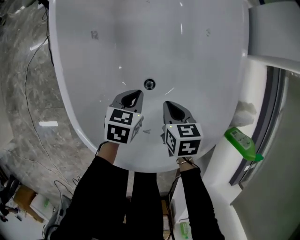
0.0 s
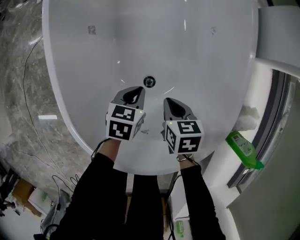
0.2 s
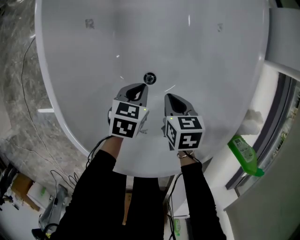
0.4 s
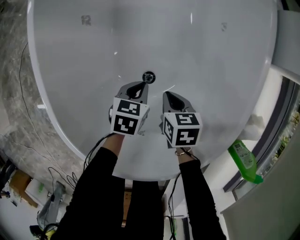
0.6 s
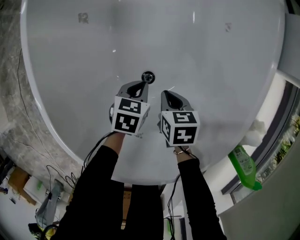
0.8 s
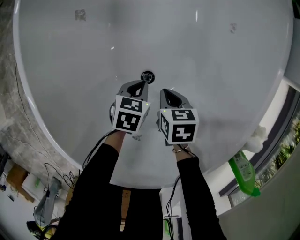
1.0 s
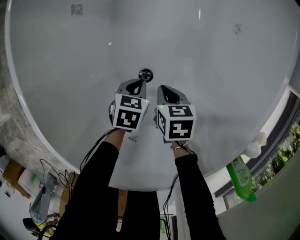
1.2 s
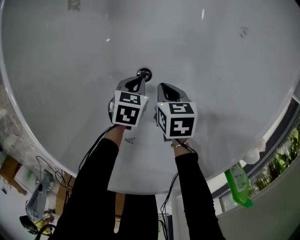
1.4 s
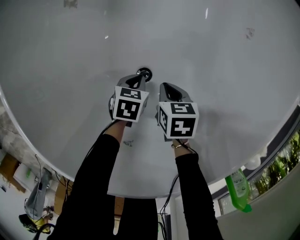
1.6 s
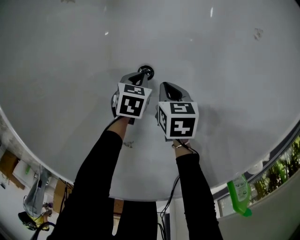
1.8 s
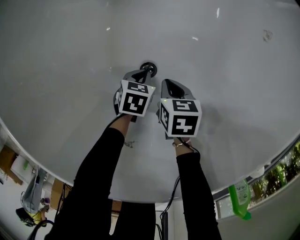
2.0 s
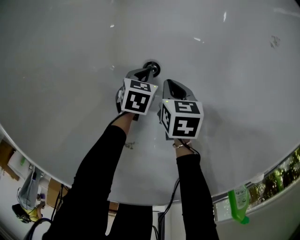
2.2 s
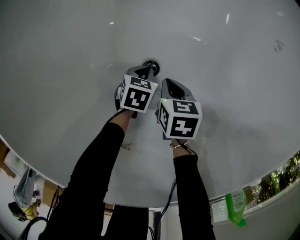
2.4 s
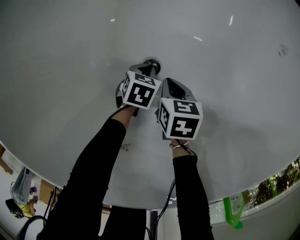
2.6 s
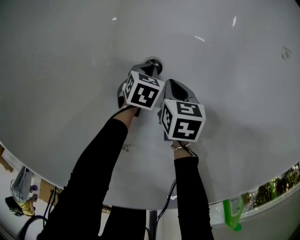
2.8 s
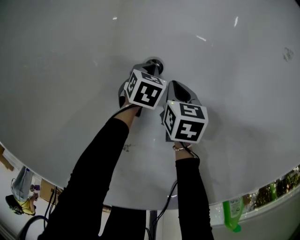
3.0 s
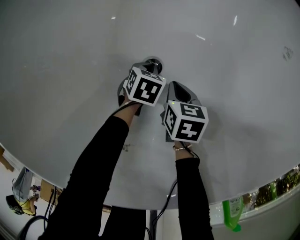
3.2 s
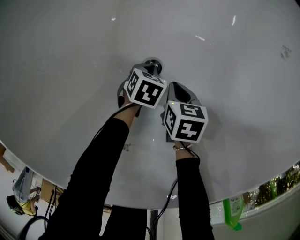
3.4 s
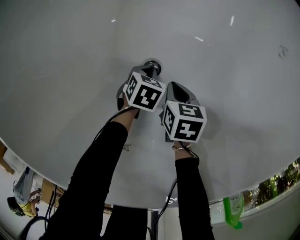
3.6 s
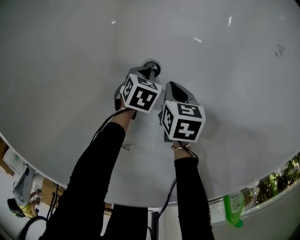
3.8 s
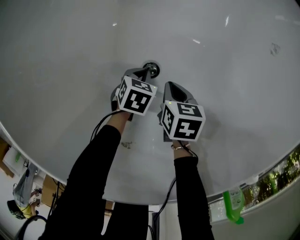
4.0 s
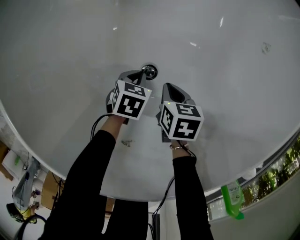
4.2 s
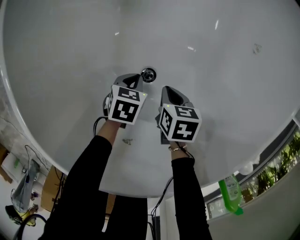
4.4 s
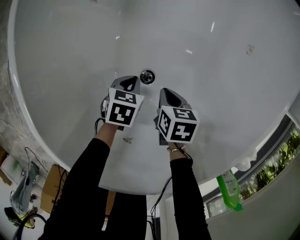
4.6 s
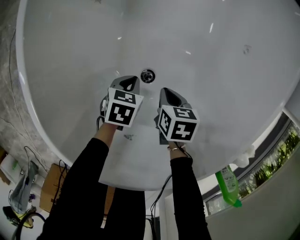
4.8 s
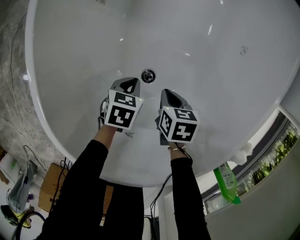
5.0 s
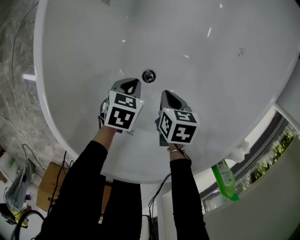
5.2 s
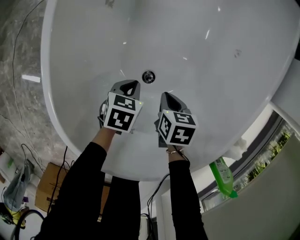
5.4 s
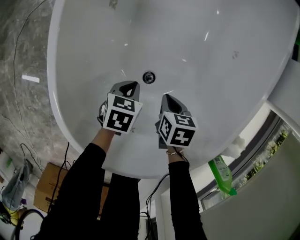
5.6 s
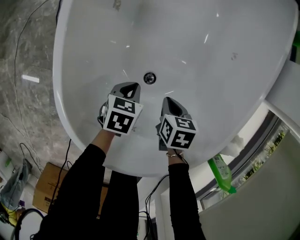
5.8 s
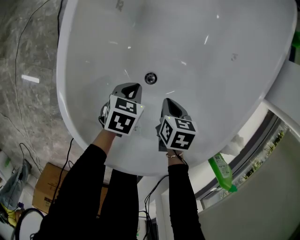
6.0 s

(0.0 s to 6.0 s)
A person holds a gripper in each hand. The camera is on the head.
0.0 s - 1.6 s: Both grippers travel together downward, approximately 20 cm.
1.6 s - 3.0 s: The grippers both shift downward by roughly 10 cm.
3.0 s - 4.4 s: The right gripper shifts about 5 cm upward, while the left gripper goes roughly 10 cm upward.
4.4 s - 6.0 s: Both grippers move upward, about 15 cm.

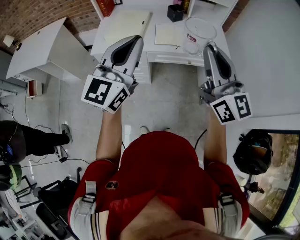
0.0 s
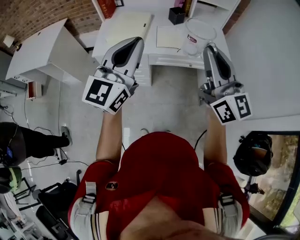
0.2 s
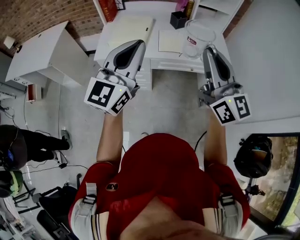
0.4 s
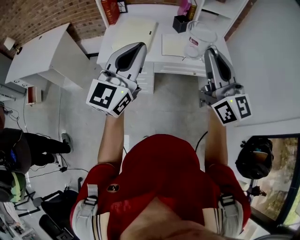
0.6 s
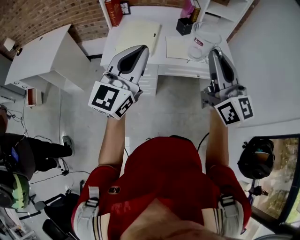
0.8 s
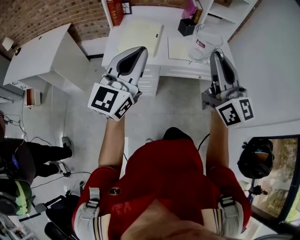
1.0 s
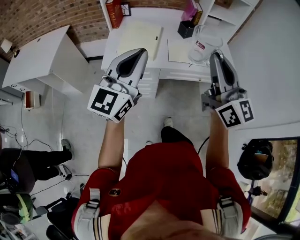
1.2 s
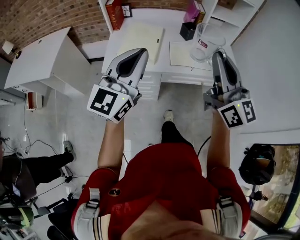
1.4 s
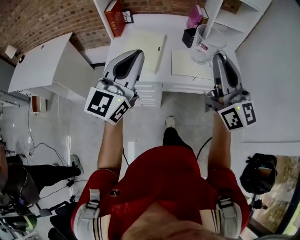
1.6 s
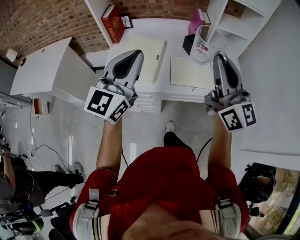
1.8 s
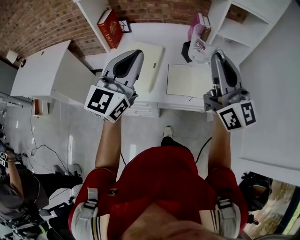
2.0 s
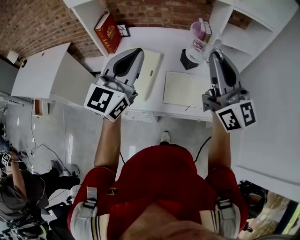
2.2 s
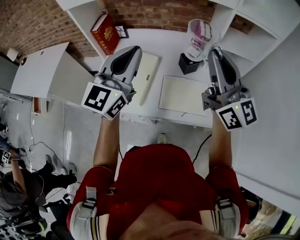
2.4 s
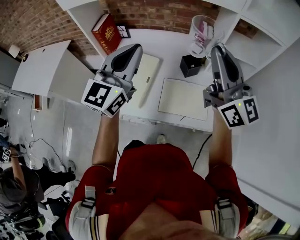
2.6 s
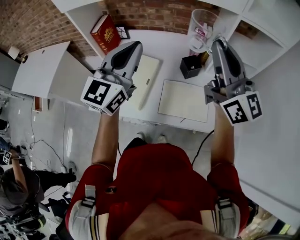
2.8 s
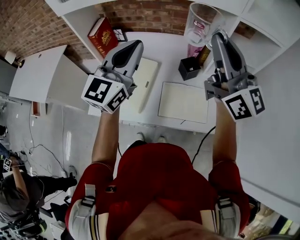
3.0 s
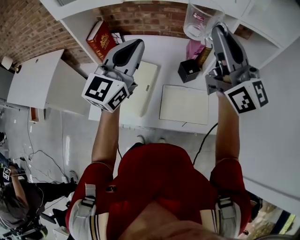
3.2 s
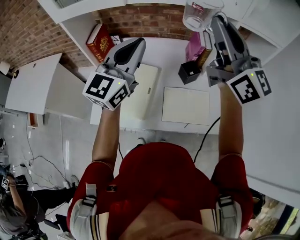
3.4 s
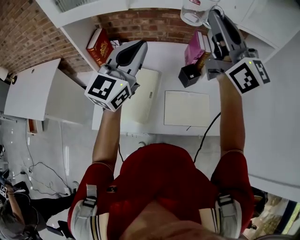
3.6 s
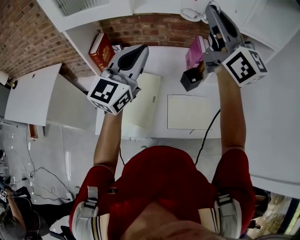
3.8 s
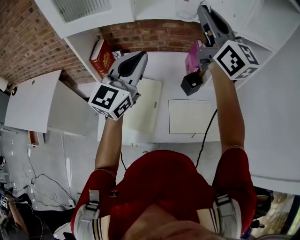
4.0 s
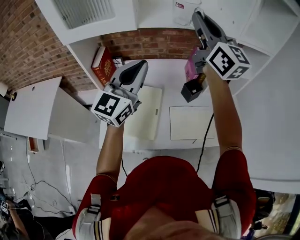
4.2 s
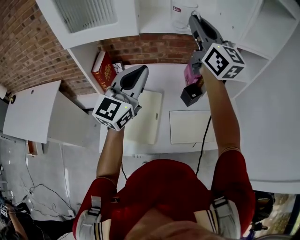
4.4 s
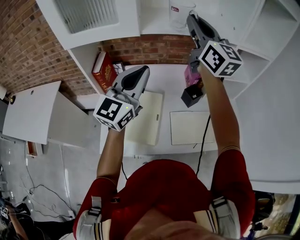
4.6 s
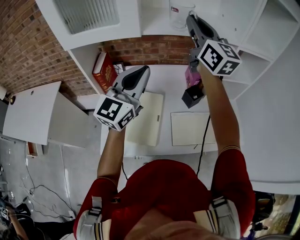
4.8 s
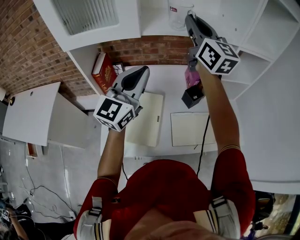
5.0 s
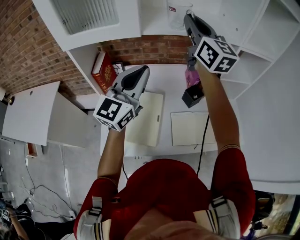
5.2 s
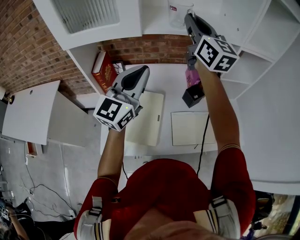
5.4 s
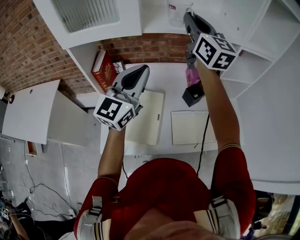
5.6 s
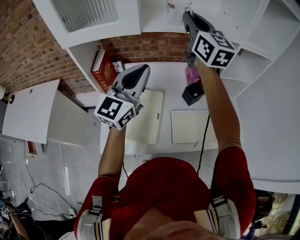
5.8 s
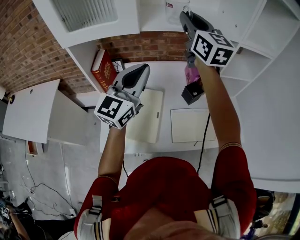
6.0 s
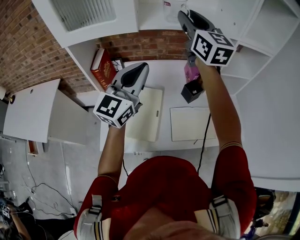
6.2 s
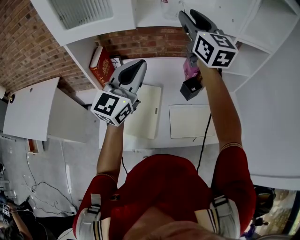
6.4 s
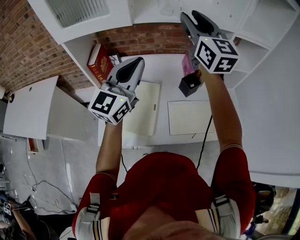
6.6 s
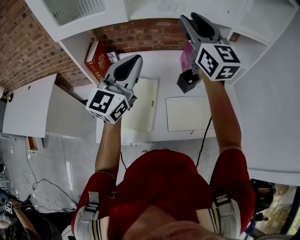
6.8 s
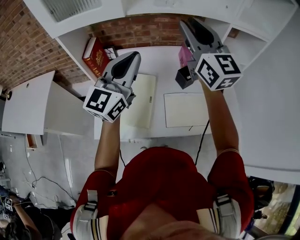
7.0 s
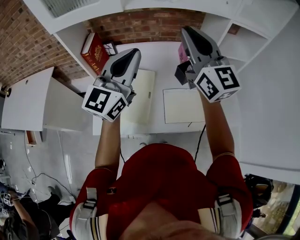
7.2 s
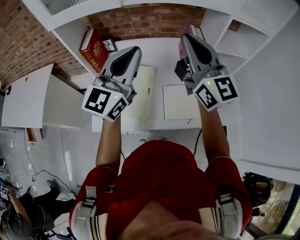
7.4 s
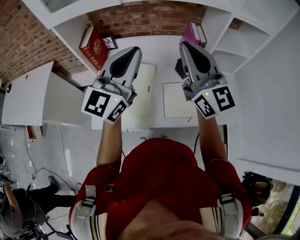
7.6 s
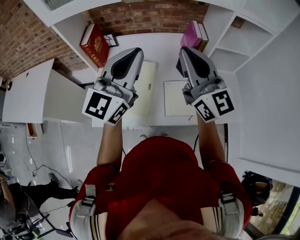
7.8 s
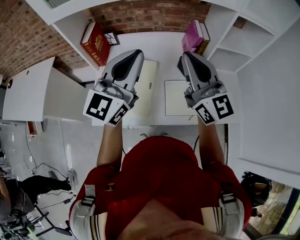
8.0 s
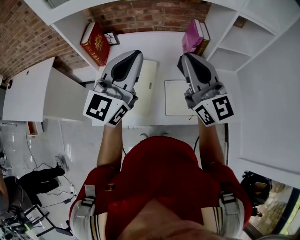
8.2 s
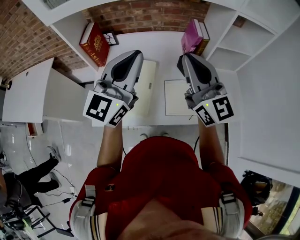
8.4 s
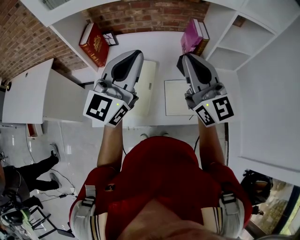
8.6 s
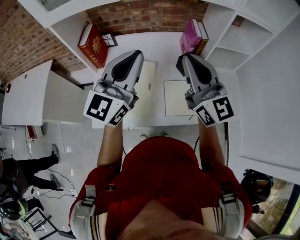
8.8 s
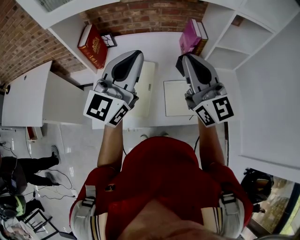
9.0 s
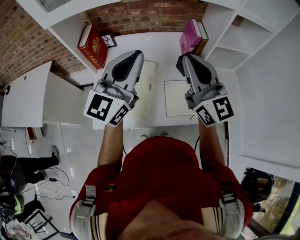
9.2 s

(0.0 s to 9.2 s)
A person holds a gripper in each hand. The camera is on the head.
0.0 s - 1.6 s: The grippers both shift forward and to the left by about 15 cm.
1.6 s - 3.0 s: The two grippers go some 30 cm forward.
3.0 s - 4.6 s: The left gripper heads to the left, covering some 10 cm; the right gripper shifts about 20 cm forward, to the left and upward.
4.6 s - 6.2 s: The right gripper opens up.
6.2 s - 7.6 s: The right gripper shifts approximately 20 cm backward and downward, and closes its fingers. Meanwhile the left gripper shifts about 5 cm backward.
7.6 s - 9.2 s: There are only small adjustments of the grippers.

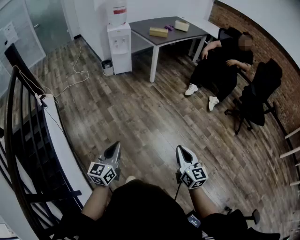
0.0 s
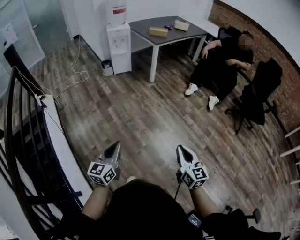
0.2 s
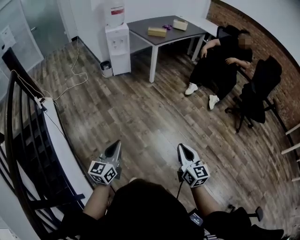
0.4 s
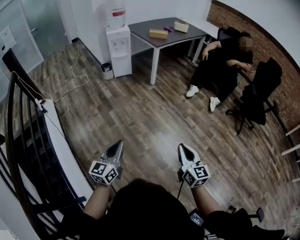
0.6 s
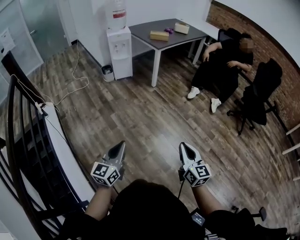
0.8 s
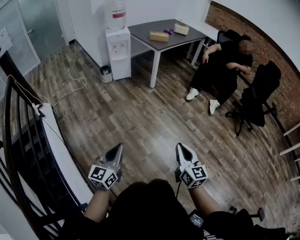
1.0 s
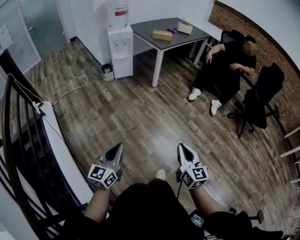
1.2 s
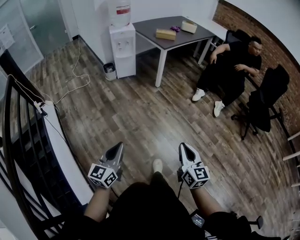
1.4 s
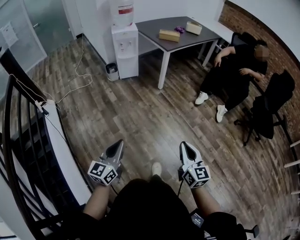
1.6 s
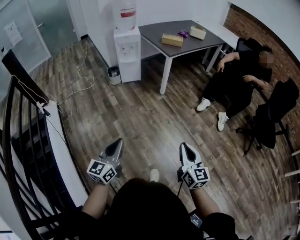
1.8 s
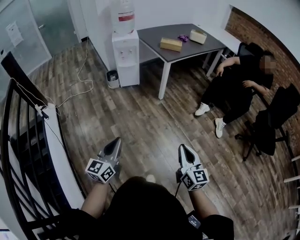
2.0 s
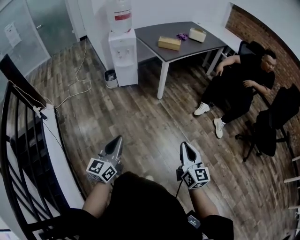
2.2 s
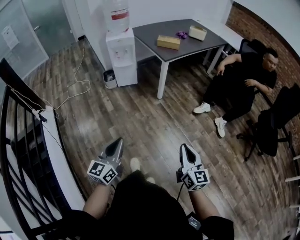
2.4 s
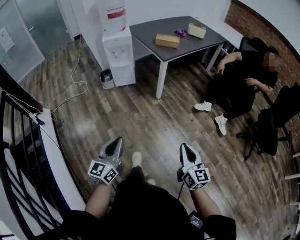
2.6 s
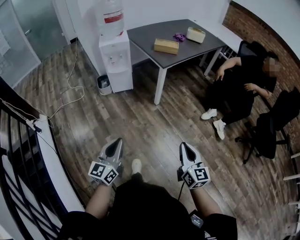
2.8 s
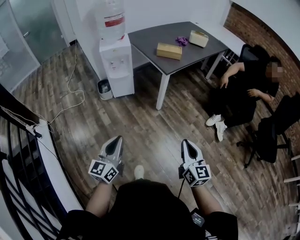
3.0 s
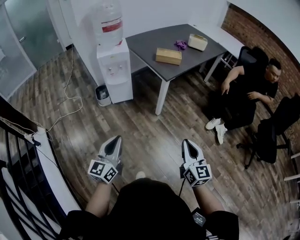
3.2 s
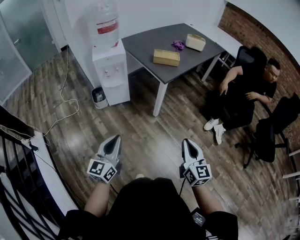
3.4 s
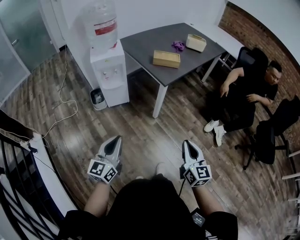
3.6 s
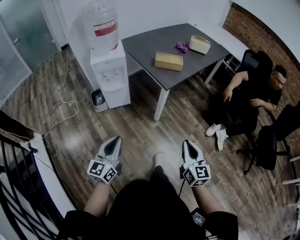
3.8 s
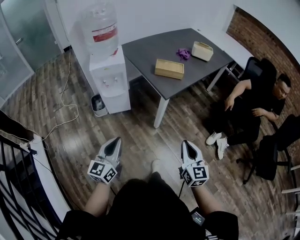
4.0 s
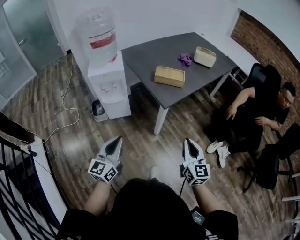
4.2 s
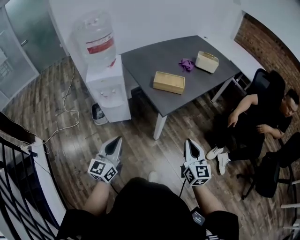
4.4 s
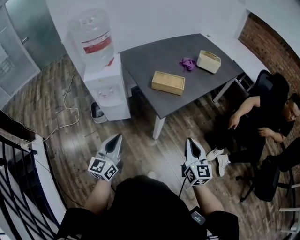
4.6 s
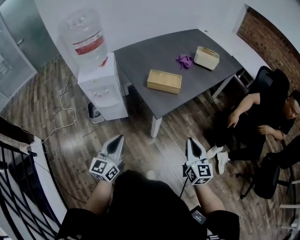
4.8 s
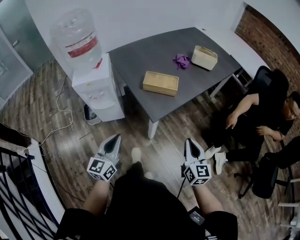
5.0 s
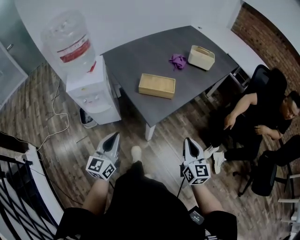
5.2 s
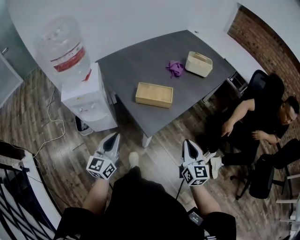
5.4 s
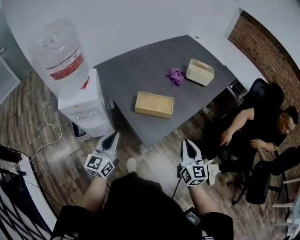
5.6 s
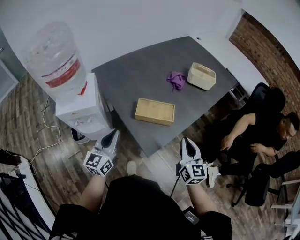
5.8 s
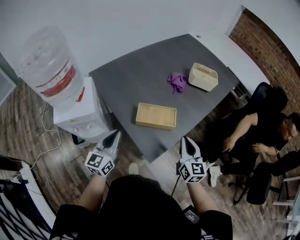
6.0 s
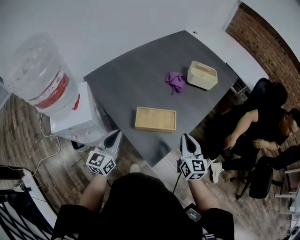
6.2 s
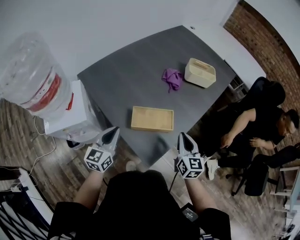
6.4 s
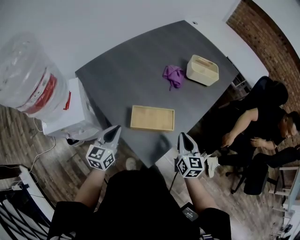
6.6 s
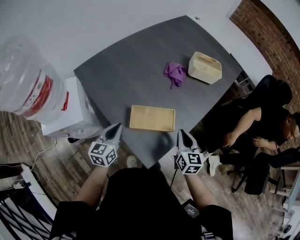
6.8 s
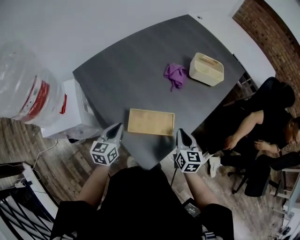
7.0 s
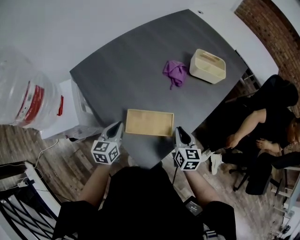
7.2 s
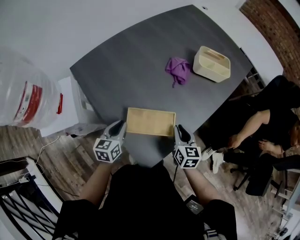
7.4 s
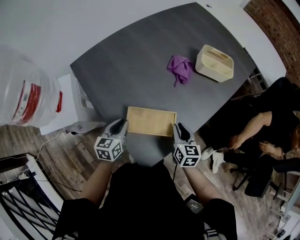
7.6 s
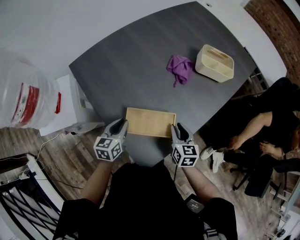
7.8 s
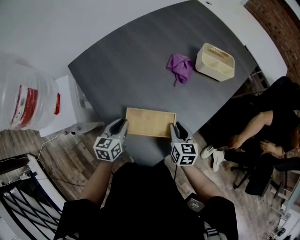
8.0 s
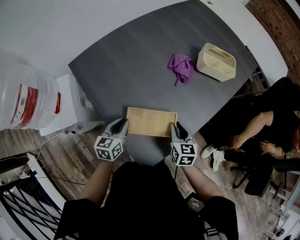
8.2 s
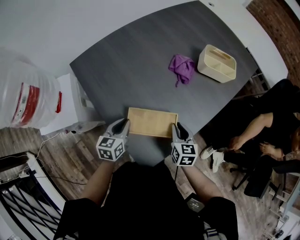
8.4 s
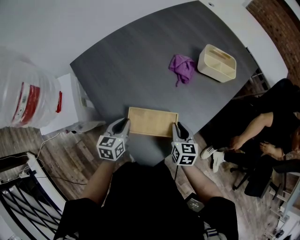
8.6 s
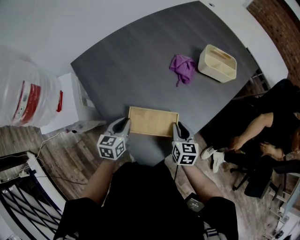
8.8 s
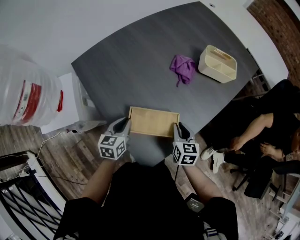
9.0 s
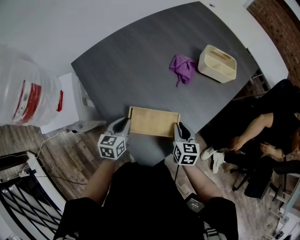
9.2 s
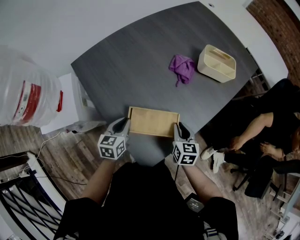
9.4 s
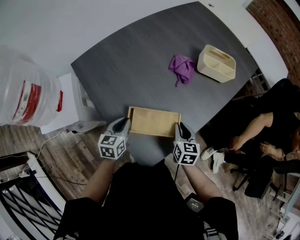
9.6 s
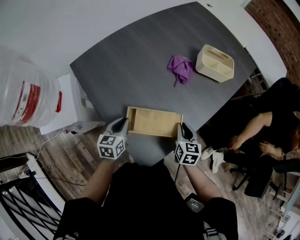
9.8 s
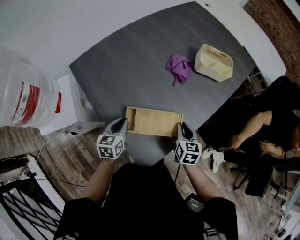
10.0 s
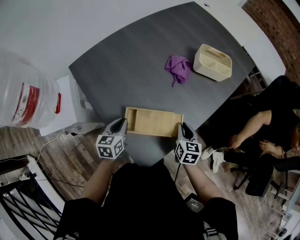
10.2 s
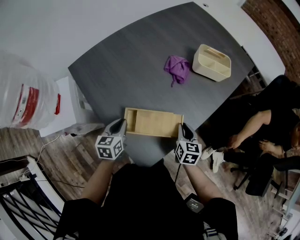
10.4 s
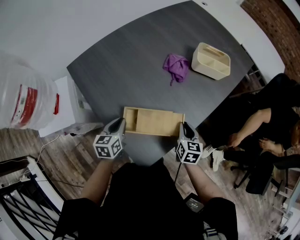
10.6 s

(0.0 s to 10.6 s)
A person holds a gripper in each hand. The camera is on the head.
0.0 s - 1.6 s: The two grippers go approximately 20 cm forward.
1.6 s - 3.0 s: The two grippers go approximately 35 cm forward.
3.0 s - 4.6 s: Both grippers travel together forward, some 35 cm.
4.6 s - 6.0 s: Both grippers travel together forward, approximately 30 cm.
6.0 s - 7.6 s: Both grippers travel together downward and forward, approximately 20 cm. The left gripper turns by about 30 degrees; the right gripper turns by some 20 degrees.
7.6 s - 9.0 s: The grippers make only small movements.
9.0 s - 10.6 s: The right gripper travels to the right by about 5 cm.
